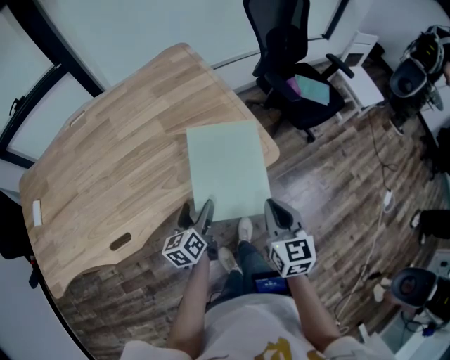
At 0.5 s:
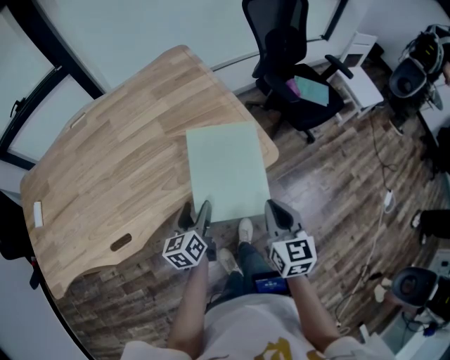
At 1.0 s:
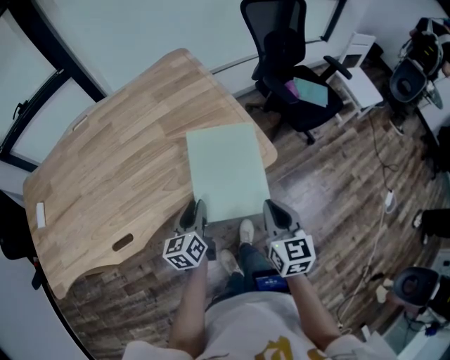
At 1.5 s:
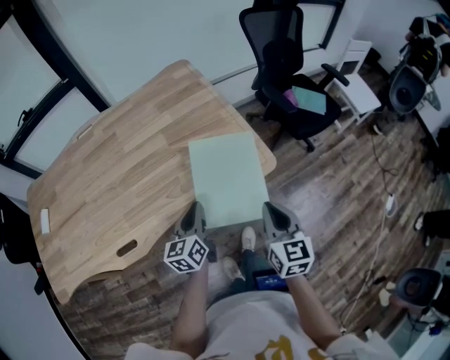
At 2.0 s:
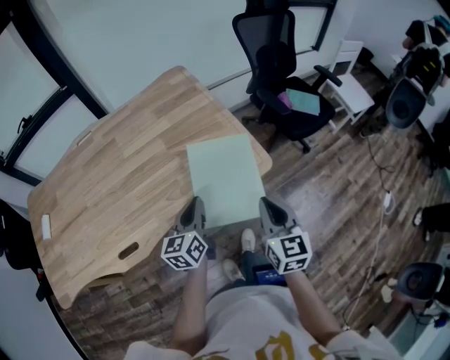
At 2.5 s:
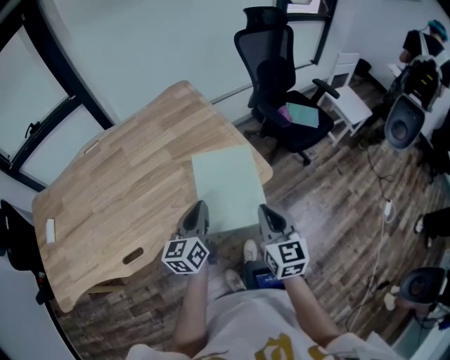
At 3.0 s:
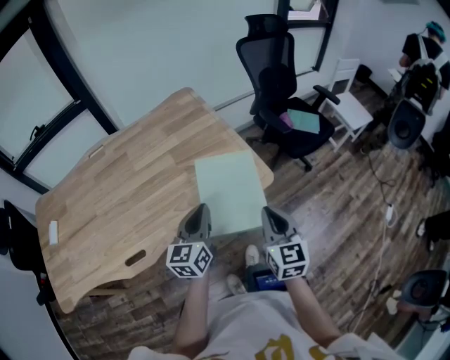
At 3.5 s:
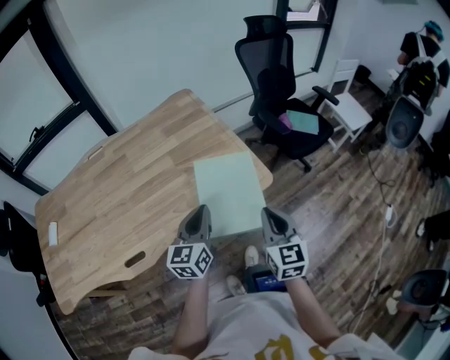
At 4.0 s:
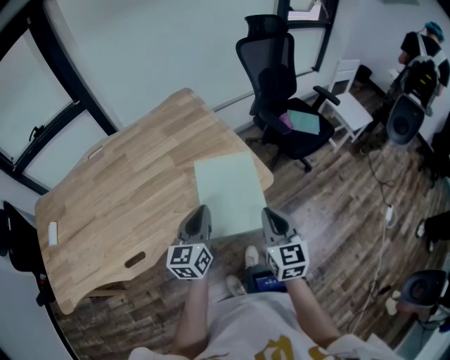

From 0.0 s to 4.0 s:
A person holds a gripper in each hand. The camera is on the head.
From 0.0 s to 2.0 s: The right gripper moves upward, some 5 cm.

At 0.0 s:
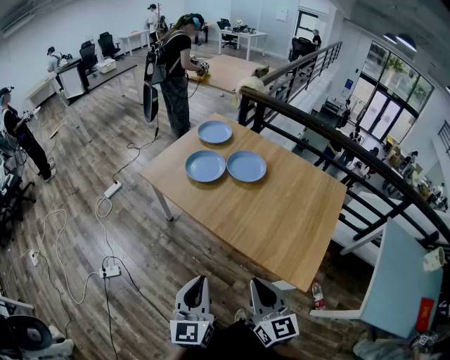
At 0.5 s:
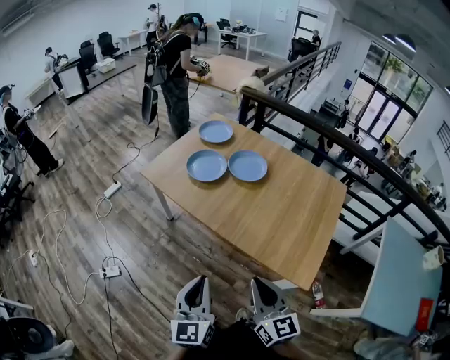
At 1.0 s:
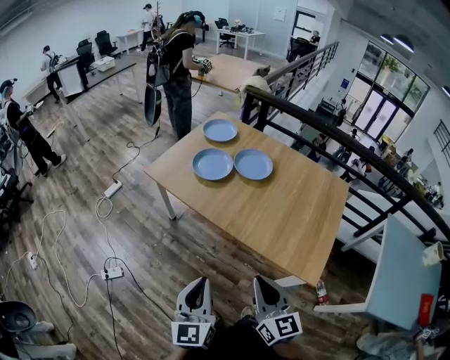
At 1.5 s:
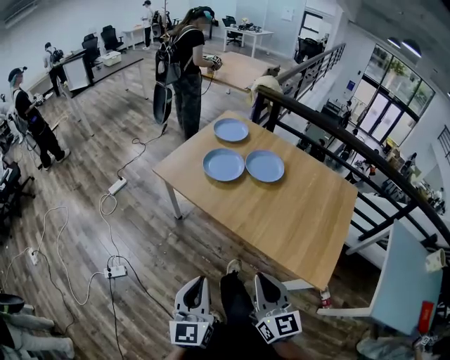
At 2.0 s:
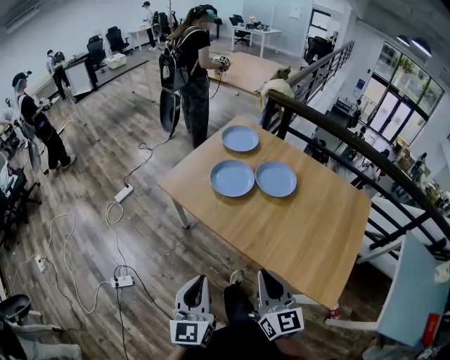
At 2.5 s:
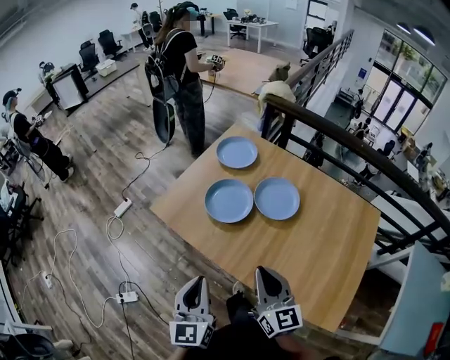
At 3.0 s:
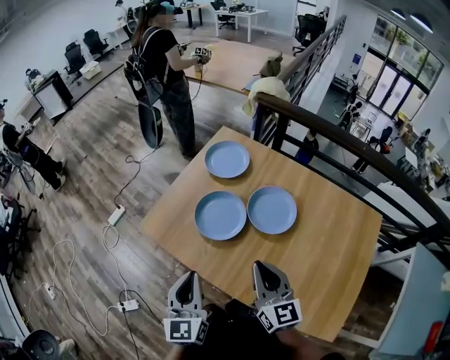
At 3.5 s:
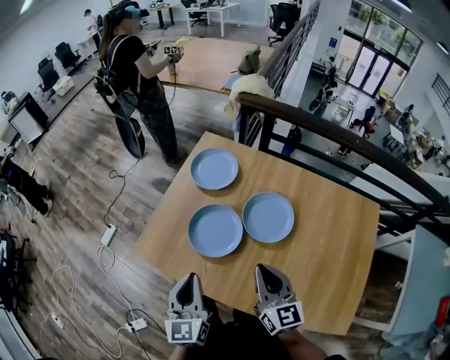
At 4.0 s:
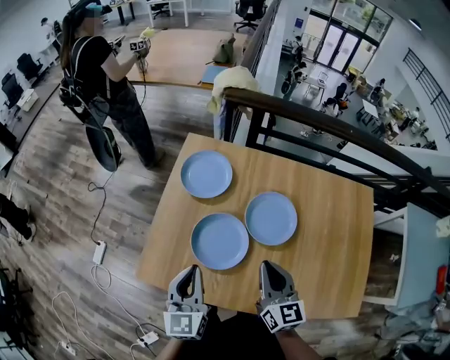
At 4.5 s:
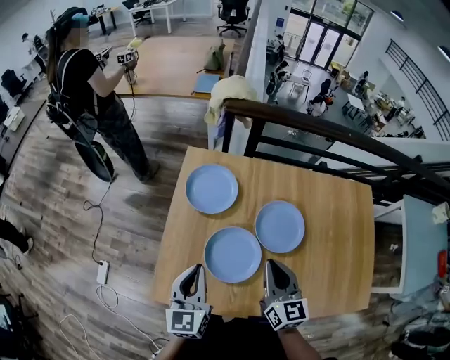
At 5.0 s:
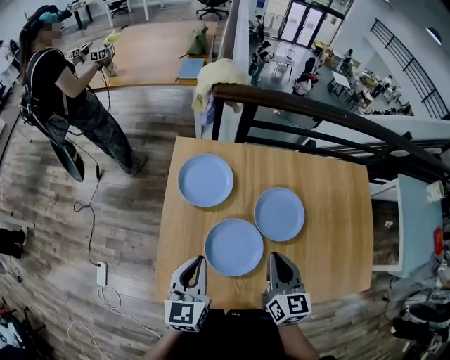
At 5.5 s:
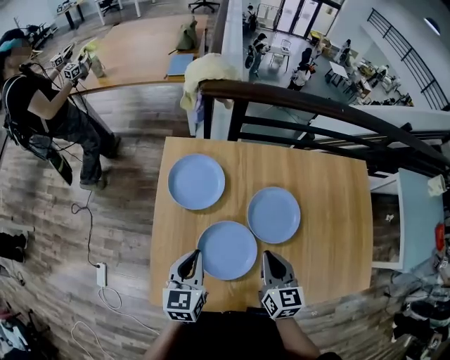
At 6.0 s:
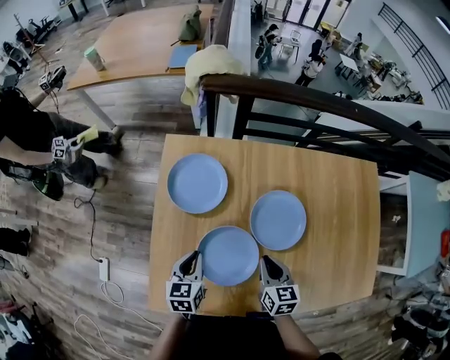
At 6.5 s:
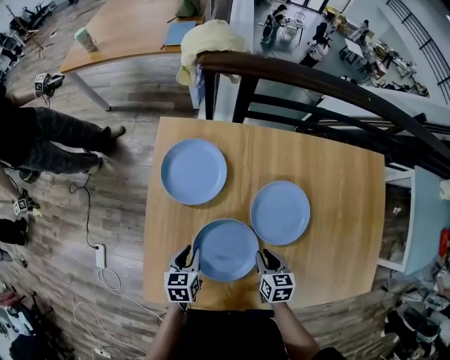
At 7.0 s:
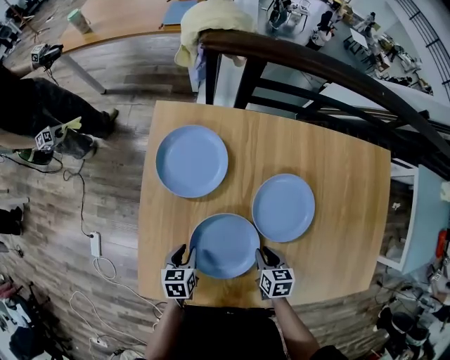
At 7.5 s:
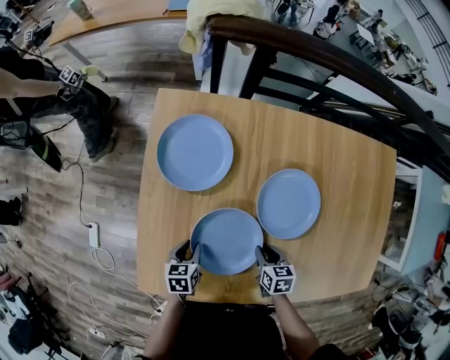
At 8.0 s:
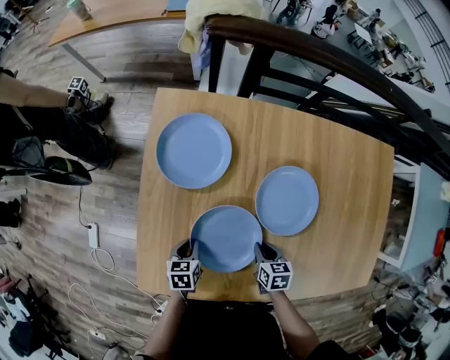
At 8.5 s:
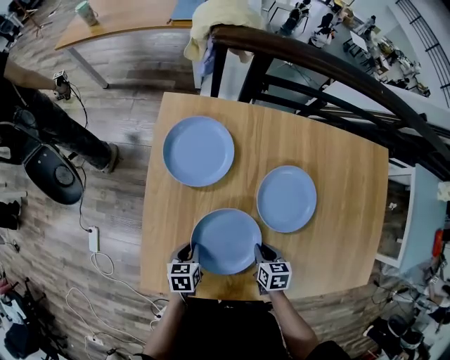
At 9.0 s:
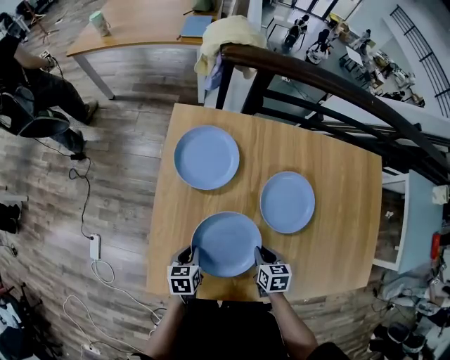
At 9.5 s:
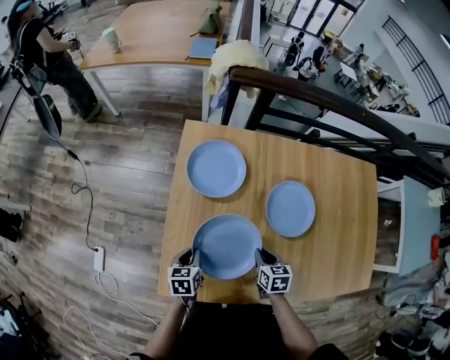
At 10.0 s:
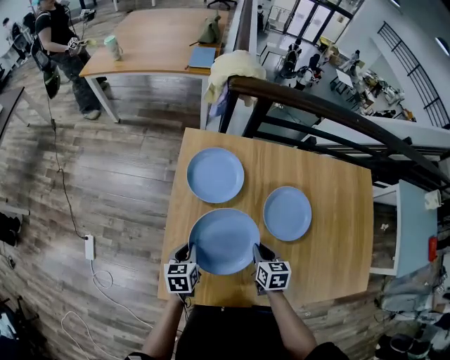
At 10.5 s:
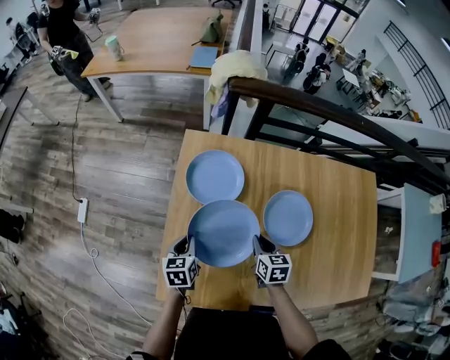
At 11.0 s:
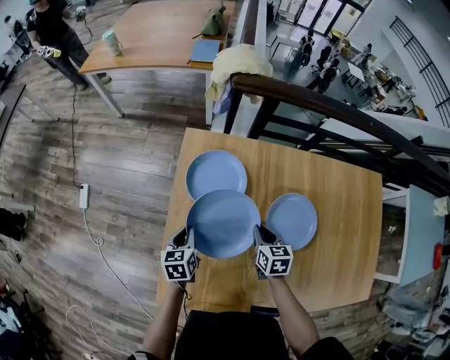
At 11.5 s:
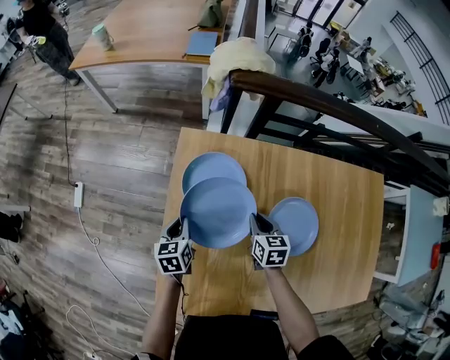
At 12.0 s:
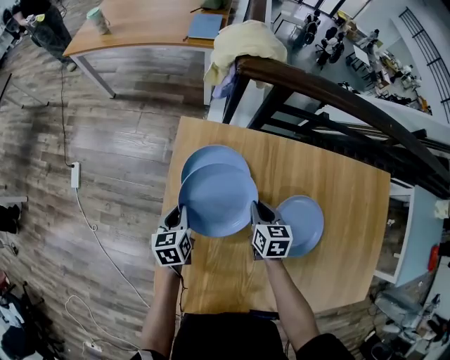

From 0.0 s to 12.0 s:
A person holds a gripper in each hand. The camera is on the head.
From 0.0 s to 2.0 s: The right gripper travels forward and to the left by approximately 20 cm. The left gripper travels to the left and forward by some 20 cm.
From 2.0 s to 4.0 s: The two grippers travel together, forward, about 40 cm. The right gripper swivels approximately 30 degrees, while the left gripper rotates approximately 20 degrees.
From 4.0 s to 6.0 s: Both grippers travel together downward and forward, about 20 cm. The right gripper rotates approximately 30 degrees. Meanwhile the left gripper swivels some 30 degrees.
From 6.0 s to 8.0 s: The two grippers go some 15 cm downward. The left gripper turns by approximately 20 degrees; the right gripper turns by some 20 degrees.
From 8.0 s to 10.0 s: Both grippers move upward and to the left, approximately 15 cm.
From 10.0 s to 12.0 s: The two grippers go approximately 20 cm forward.

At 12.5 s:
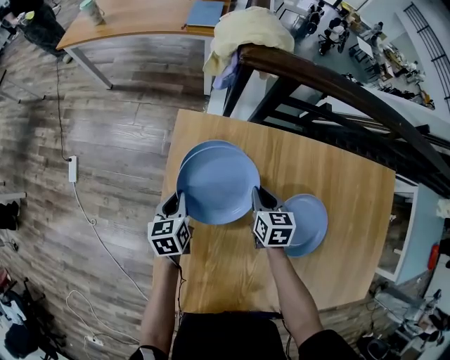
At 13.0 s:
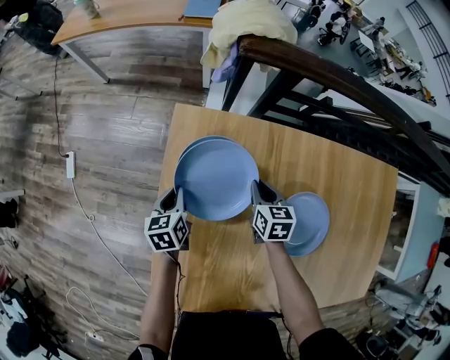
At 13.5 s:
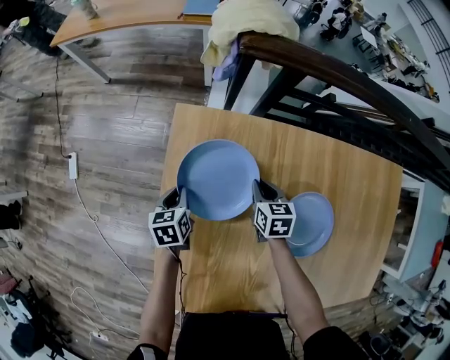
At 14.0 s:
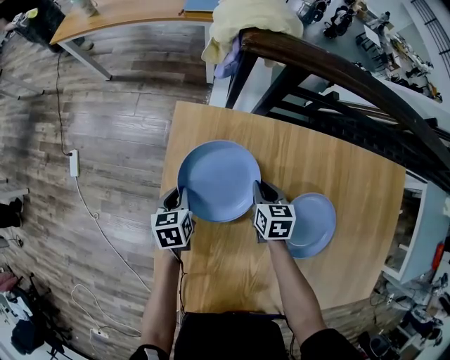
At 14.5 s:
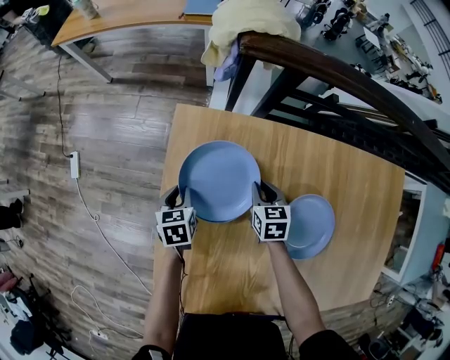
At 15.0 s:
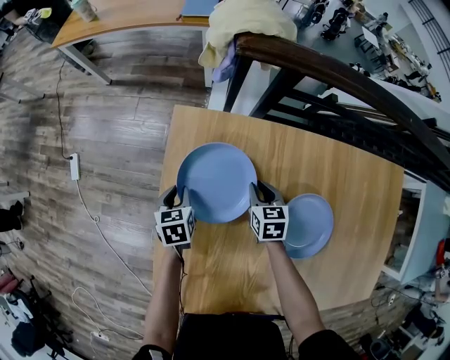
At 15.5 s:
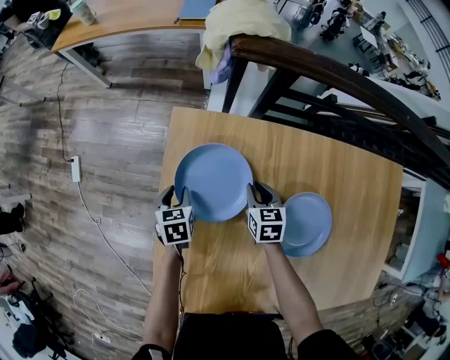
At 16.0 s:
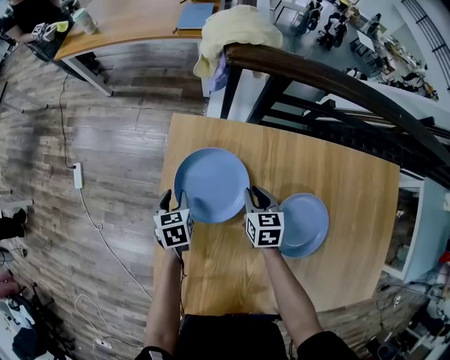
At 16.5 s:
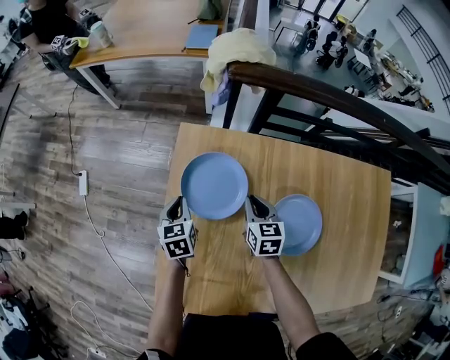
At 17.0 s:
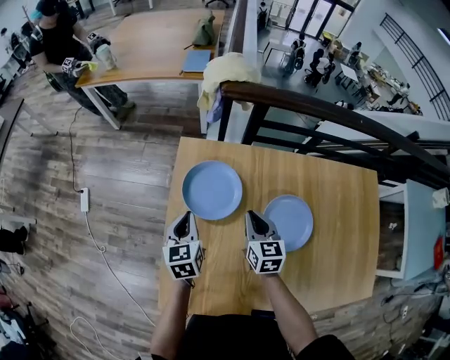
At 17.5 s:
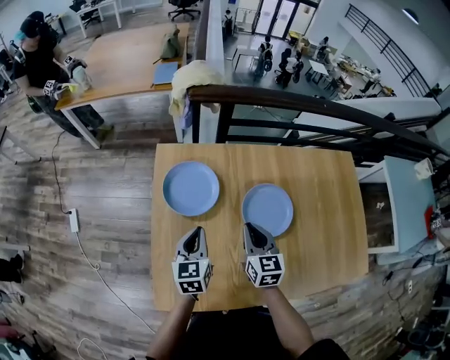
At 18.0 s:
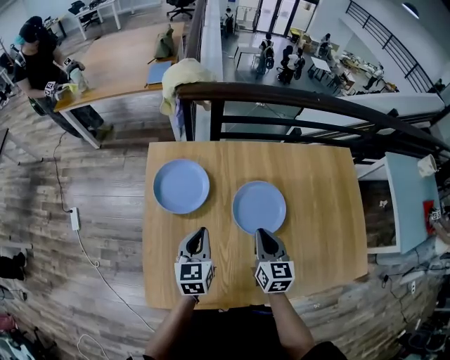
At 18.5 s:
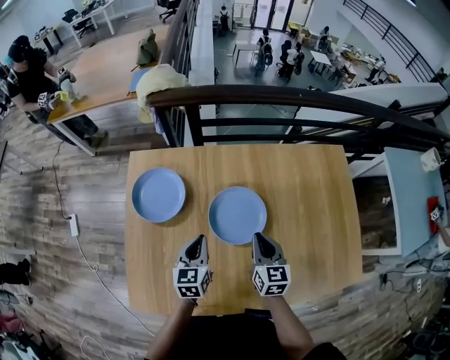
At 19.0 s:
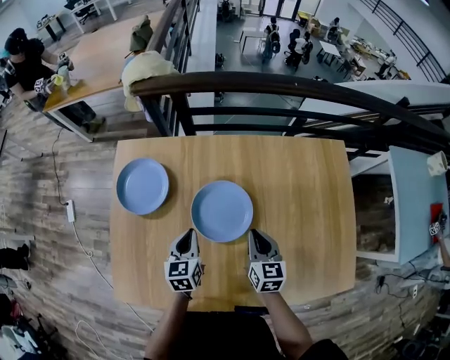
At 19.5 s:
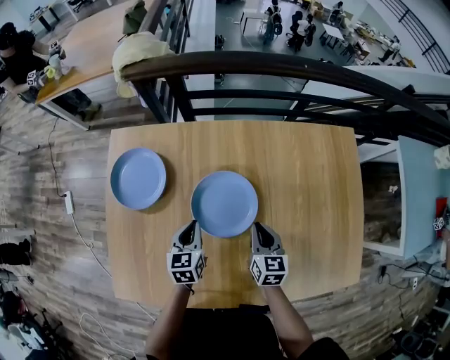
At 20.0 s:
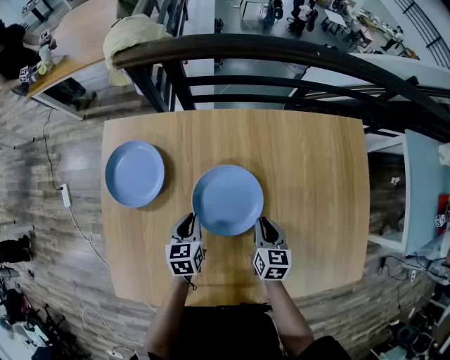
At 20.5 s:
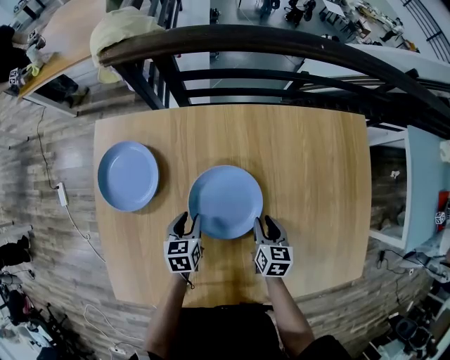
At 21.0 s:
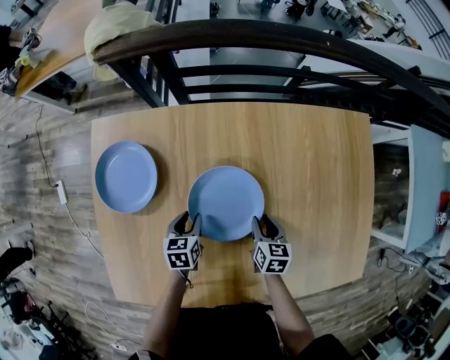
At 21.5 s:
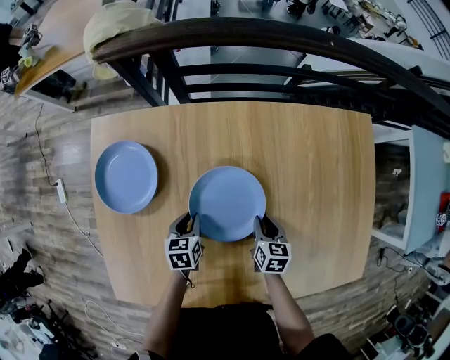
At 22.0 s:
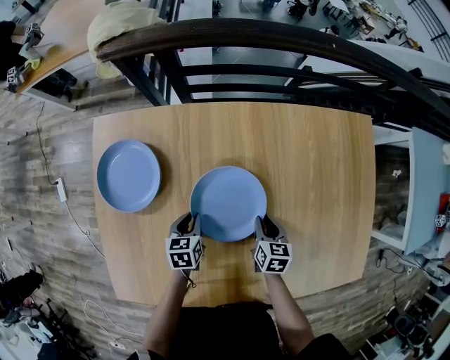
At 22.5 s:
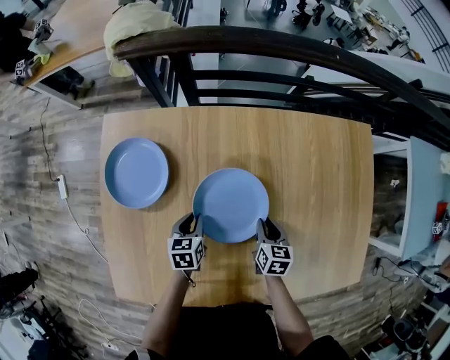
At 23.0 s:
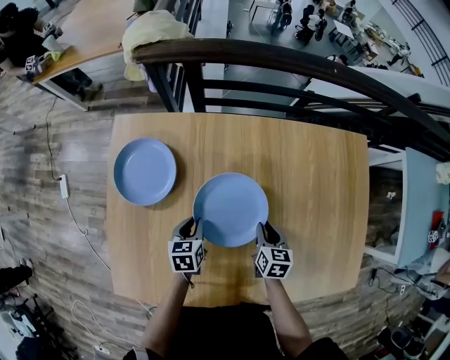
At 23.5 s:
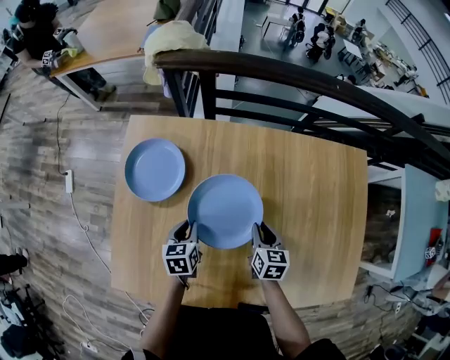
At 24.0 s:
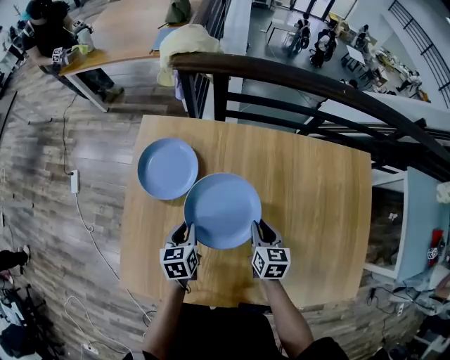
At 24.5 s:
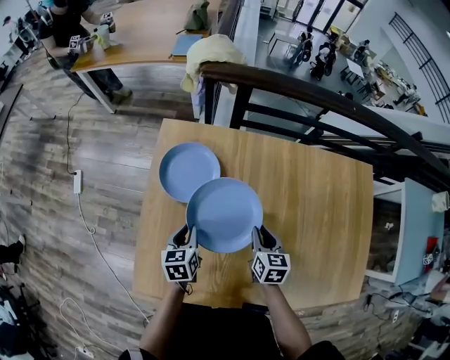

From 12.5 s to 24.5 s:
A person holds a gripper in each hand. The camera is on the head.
From 12.5 s to 14.5 s: The right gripper shifts some 5 cm downward.
From 14.5 s to 16.5 s: Both grippers move upward, some 10 cm. The left gripper opens, then closes once more.
From 16.5 s to 18.5 s: Both grippers travel together to the right and backward, some 30 cm. The left gripper changes its angle by some 20 degrees.
From 18.5 s to 20.5 s: The left gripper heads downward, covering approximately 15 cm, rotates approximately 20 degrees, and opens; the right gripper shifts some 20 cm downward and to the right, turns by about 20 degrees, and opens its fingers.
From 20.5 s to 22.5 s: The grippers move only a little.
From 22.5 s to 24.5 s: Both grippers move to the left and upward, roughly 20 cm.
